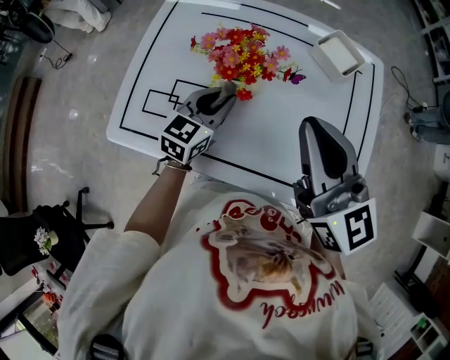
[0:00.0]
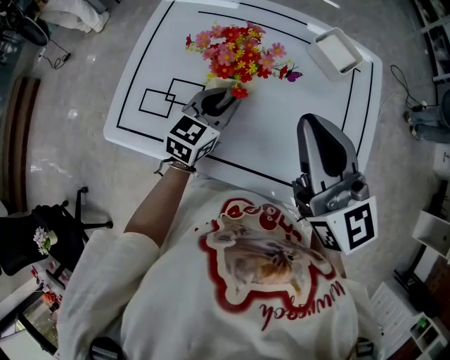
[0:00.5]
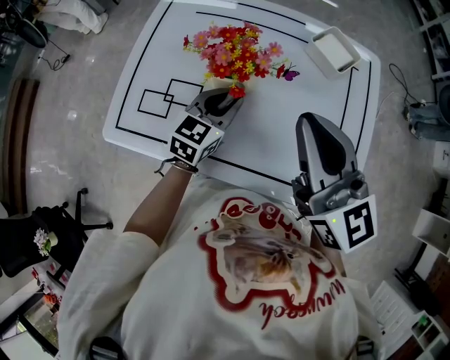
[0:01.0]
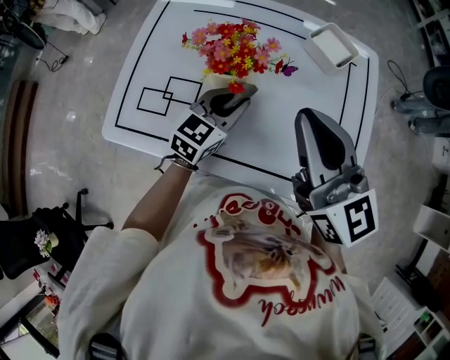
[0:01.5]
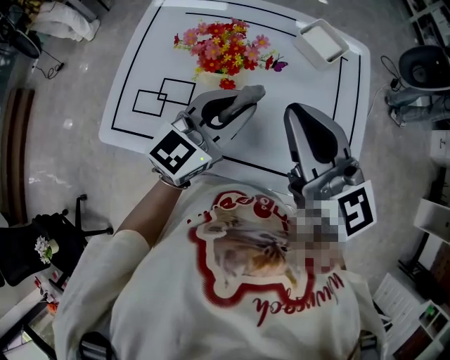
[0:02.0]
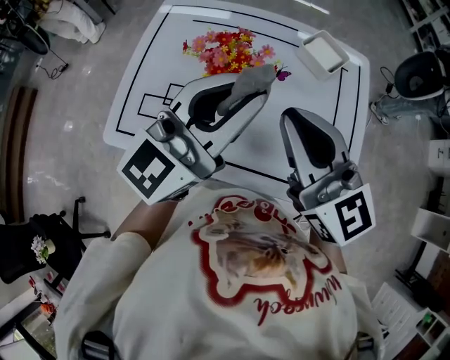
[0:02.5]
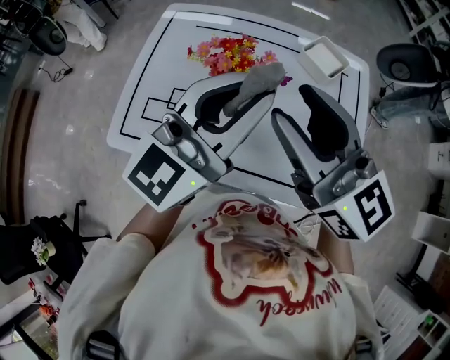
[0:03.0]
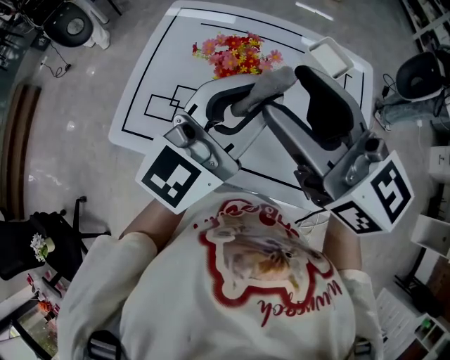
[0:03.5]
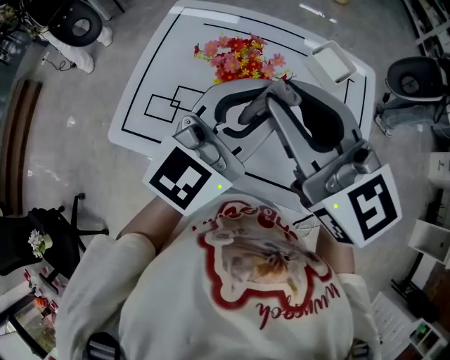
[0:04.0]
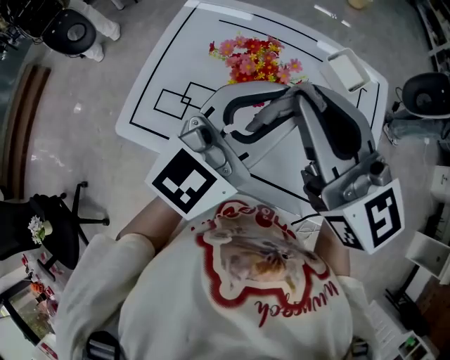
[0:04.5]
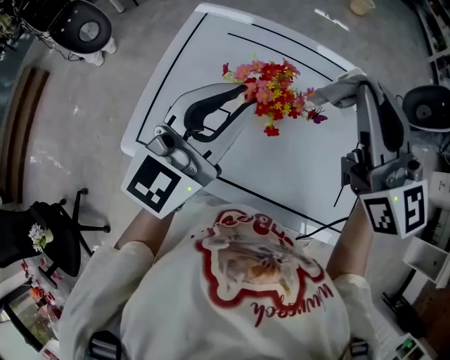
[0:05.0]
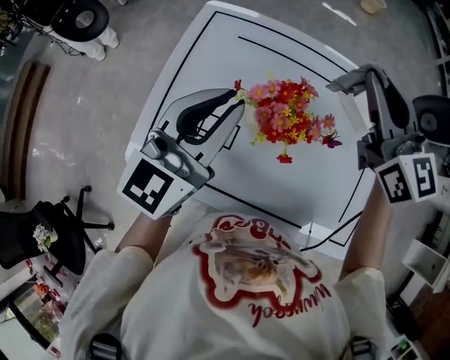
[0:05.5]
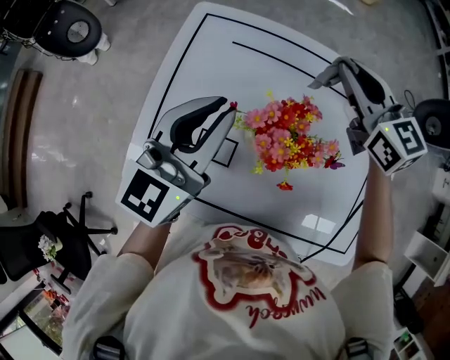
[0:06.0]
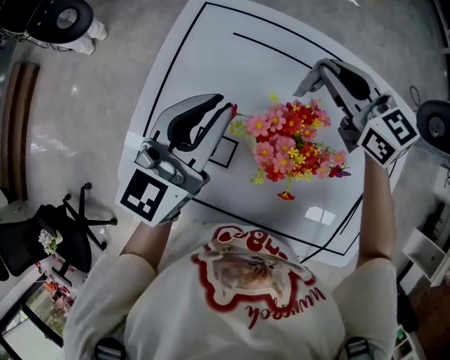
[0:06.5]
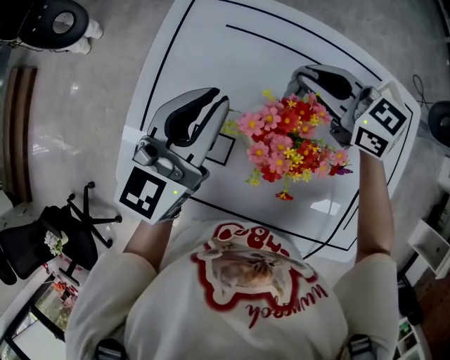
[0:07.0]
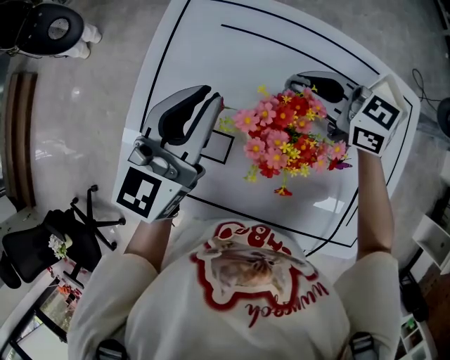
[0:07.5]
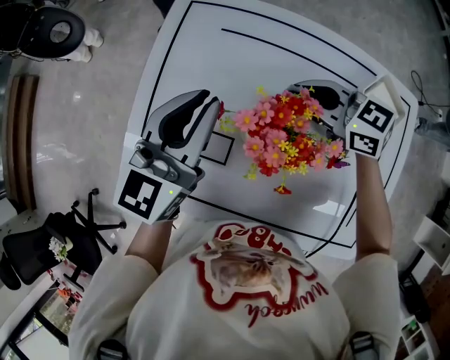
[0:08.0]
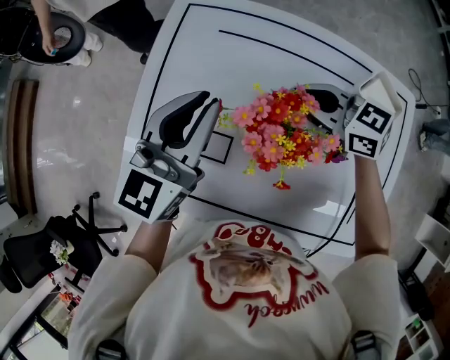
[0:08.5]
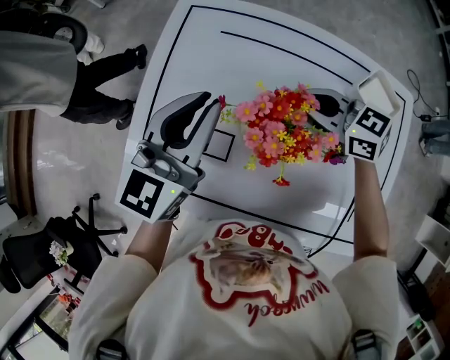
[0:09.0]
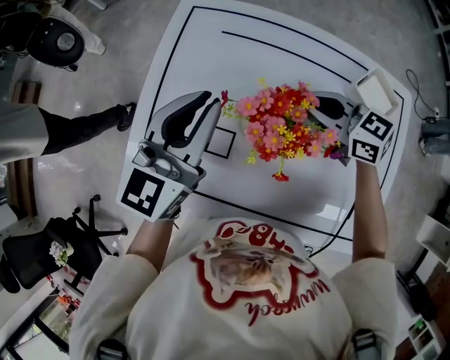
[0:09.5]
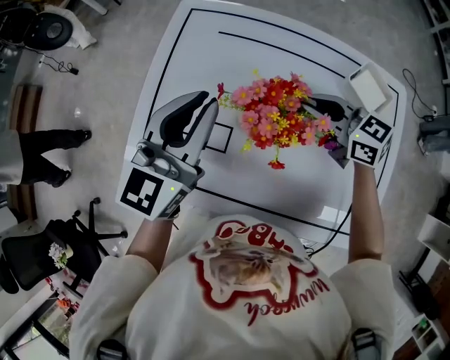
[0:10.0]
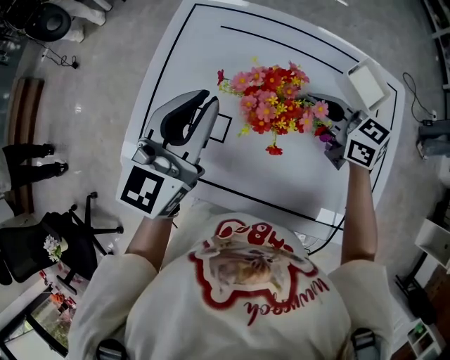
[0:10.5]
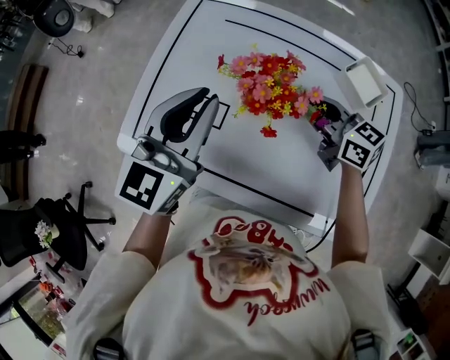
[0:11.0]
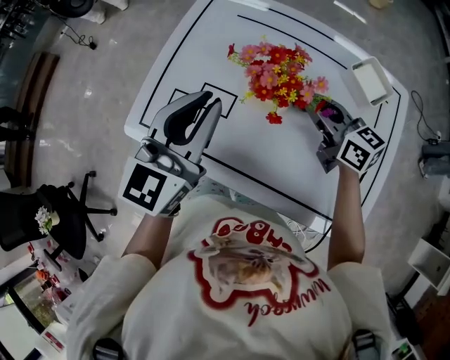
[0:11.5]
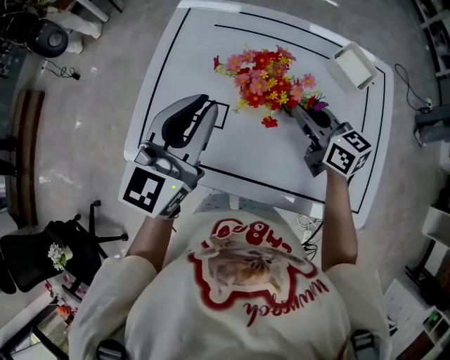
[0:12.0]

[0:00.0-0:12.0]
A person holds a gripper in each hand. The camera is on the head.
0:00.0 to 0:02.0: The left gripper goes approximately 15 cm upward, to the right and backward, and rotates some 20 degrees.
0:02.0 to 0:04.0: The left gripper shifts some 10 cm upward. The right gripper heads upward and to the left, covering about 10 cm, and opens, then closes again.
0:04.0 to 0:06.0: The left gripper travels to the left, forward and downward by roughly 25 cm, and changes its angle by approximately 20 degrees. The right gripper shifts roughly 30 cm forward and downward.
0:06.0 to 0:08.0: The right gripper travels downward and to the left by roughly 15 cm, and rotates approximately 40 degrees.
0:08.0 to 0:10.0: The right gripper is displaced backward by about 5 cm.
0:10.0 to 0:12.0: Both grippers travel together backward, about 5 cm. The right gripper changes its angle by roughly 20 degrees.

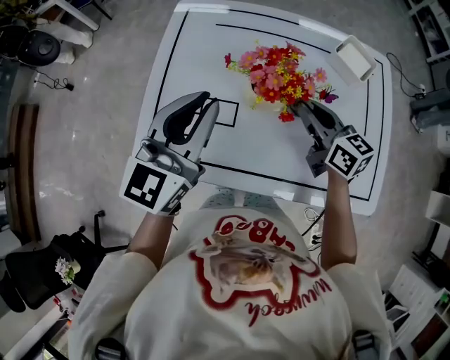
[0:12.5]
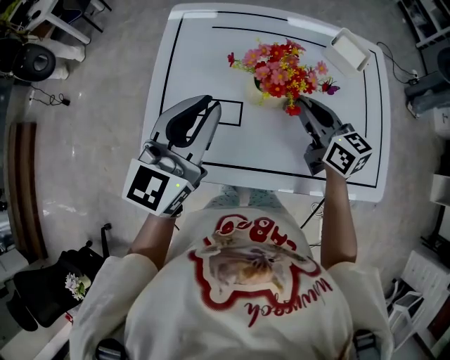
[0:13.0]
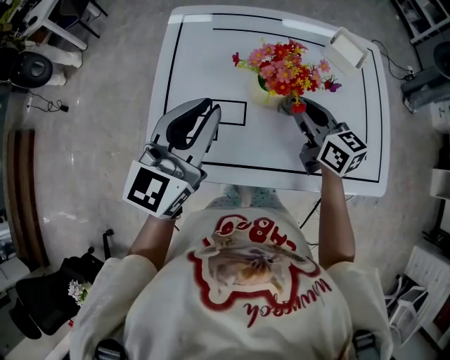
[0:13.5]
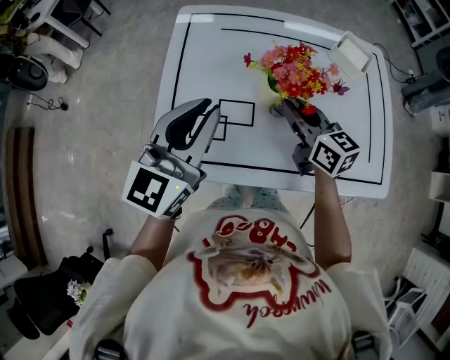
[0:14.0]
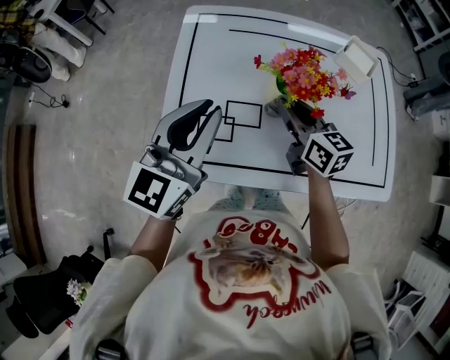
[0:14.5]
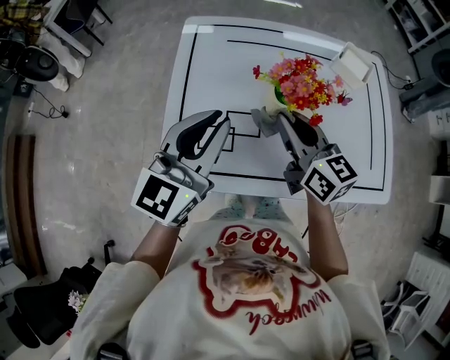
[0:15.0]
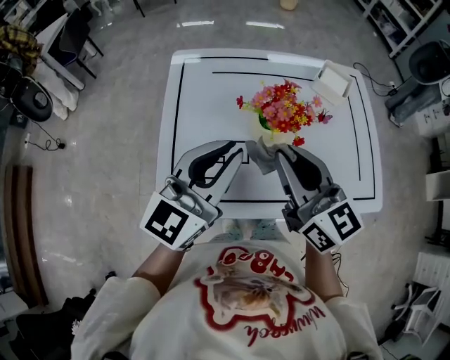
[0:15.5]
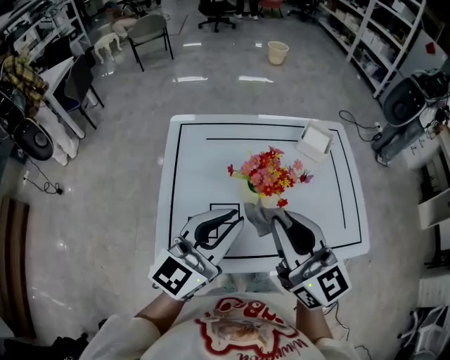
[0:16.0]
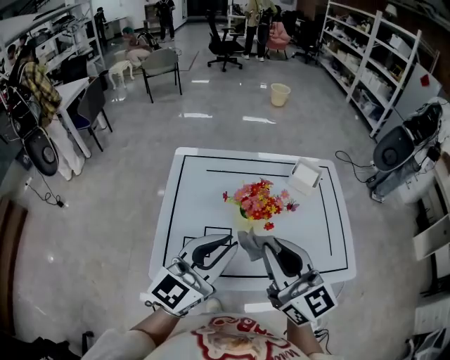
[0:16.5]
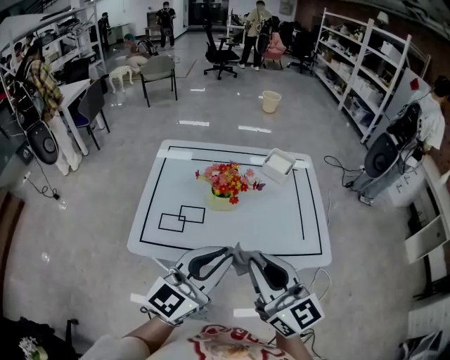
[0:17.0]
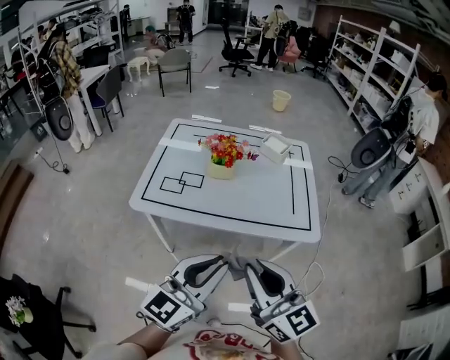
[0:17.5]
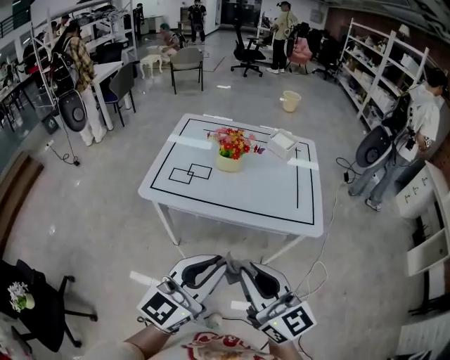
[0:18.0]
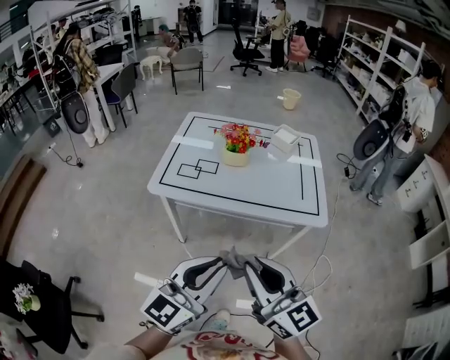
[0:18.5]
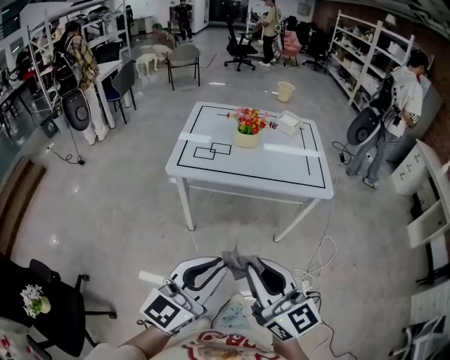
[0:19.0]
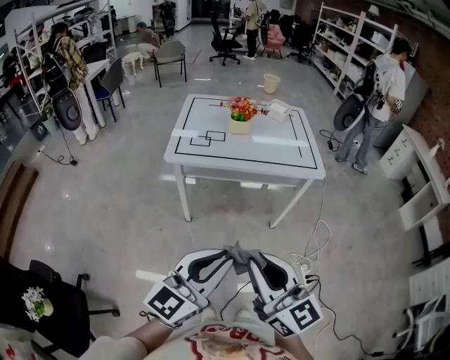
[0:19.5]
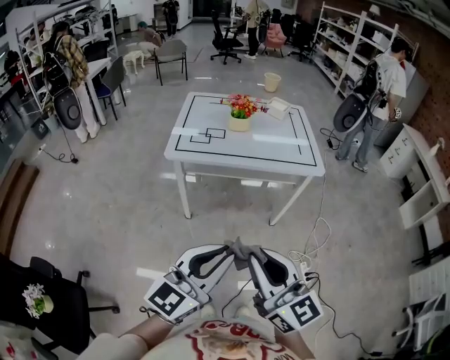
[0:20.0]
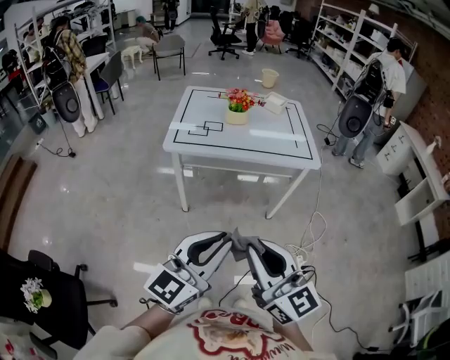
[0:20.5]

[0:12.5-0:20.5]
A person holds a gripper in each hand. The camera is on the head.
0:12.5 to 0:14.5: The left gripper shifts roughly 5 cm to the left, while the right gripper goes about 10 cm to the left.
0:14.5 to 0:16.5: The left gripper is displaced to the right and upward by some 10 cm. Meanwhile the right gripper moves upward and backward, roughly 25 cm, and rotates some 30 degrees.
0:16.5 to 0:18.5: The two grippers go approximately 35 cm backward.
0:18.5 to 0:20.5: Both grippers move backward, about 20 cm.

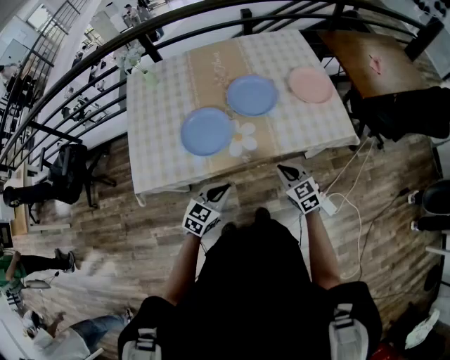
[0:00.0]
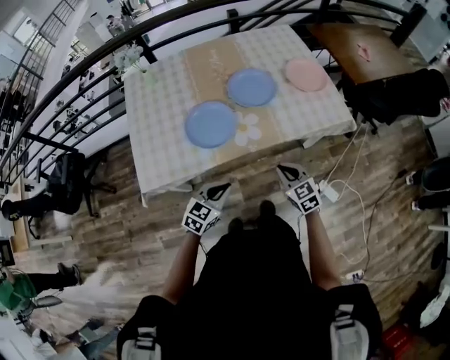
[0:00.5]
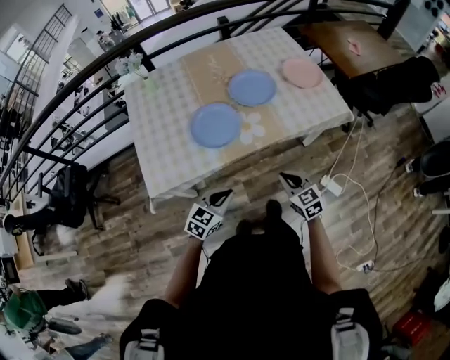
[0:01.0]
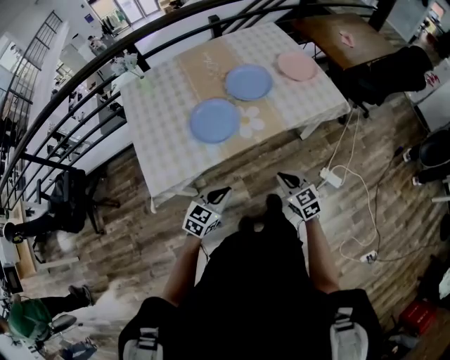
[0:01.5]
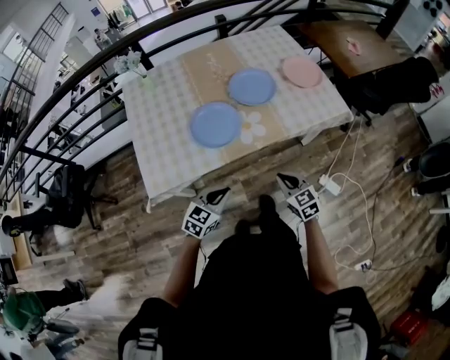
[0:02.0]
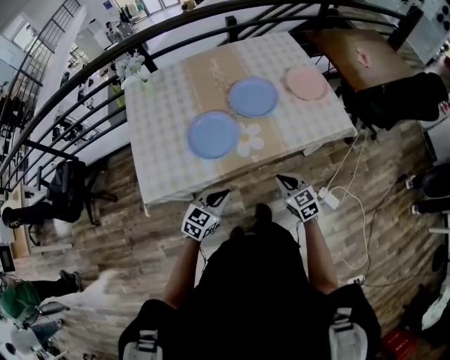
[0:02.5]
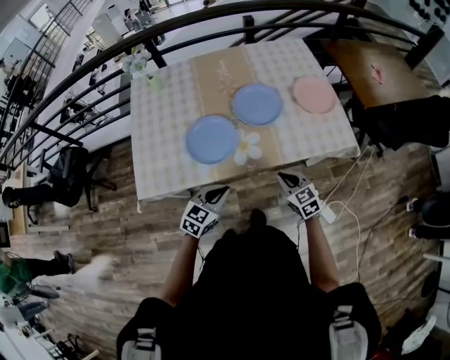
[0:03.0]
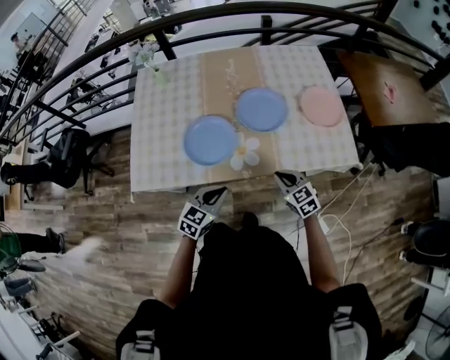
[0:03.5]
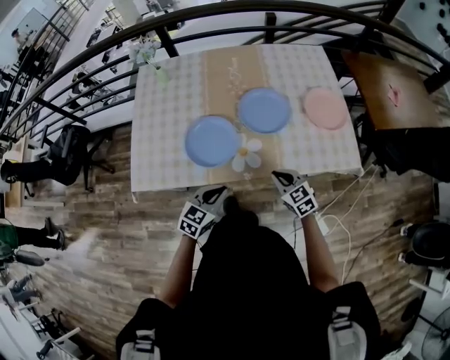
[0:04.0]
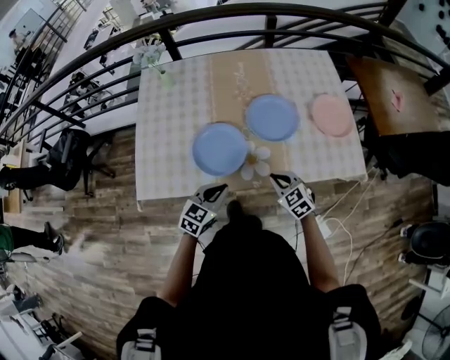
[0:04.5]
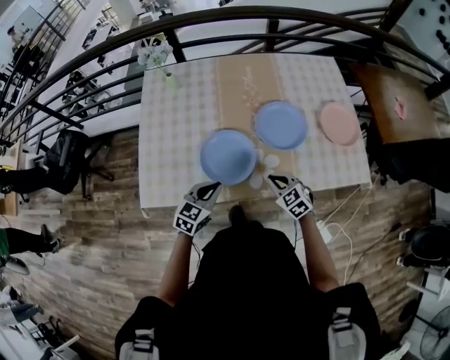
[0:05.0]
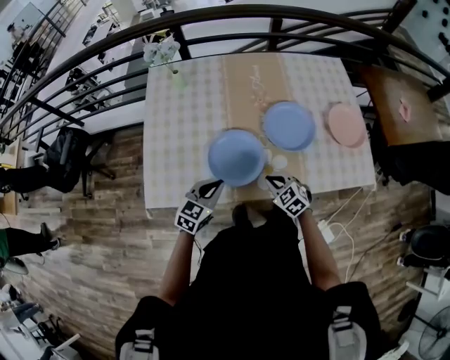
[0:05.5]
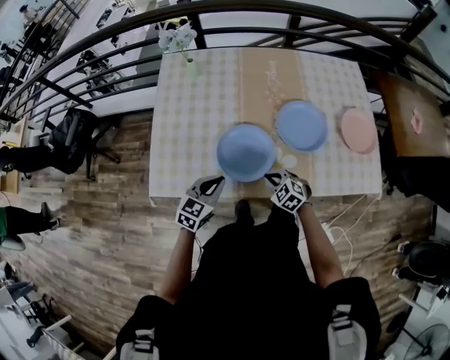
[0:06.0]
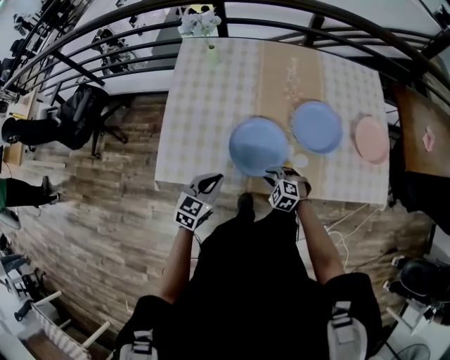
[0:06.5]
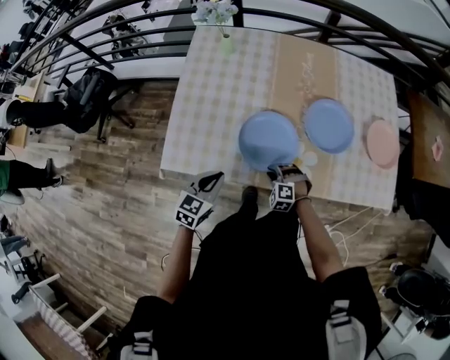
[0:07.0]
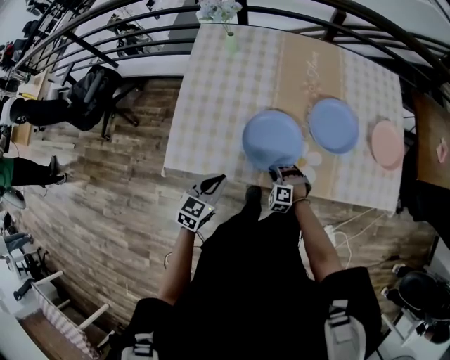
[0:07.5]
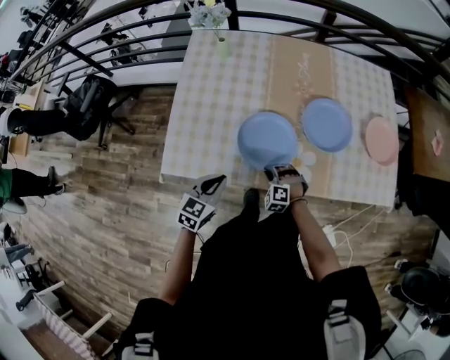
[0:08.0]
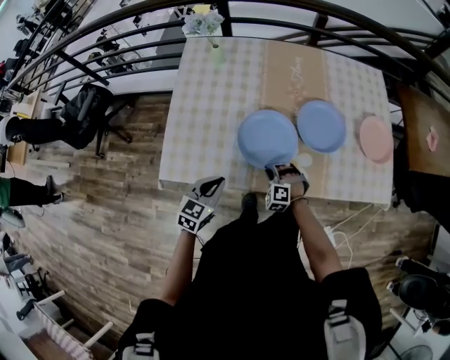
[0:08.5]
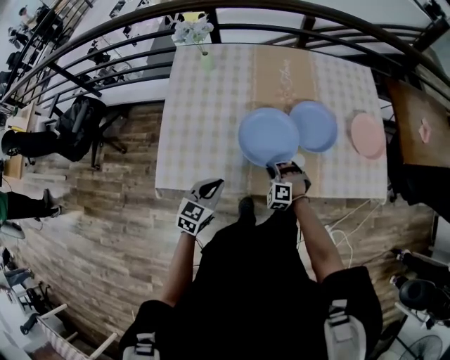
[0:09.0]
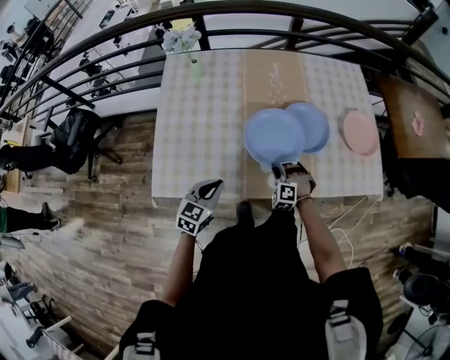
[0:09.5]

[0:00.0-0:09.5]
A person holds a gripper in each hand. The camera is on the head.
0:00.0 to 0:02.0: The left gripper moves to the left and backward, some 15 cm; the right gripper travels backward and to the left by roughly 15 cm.
0:02.0 to 0:04.0: The left gripper travels forward and to the right by roughly 15 cm; the right gripper moves forward, some 20 cm, and rotates approximately 20 degrees.
0:04.0 to 0:05.5: The right gripper moves to the left, forward and downward, some 15 cm, while the left gripper shifts about 15 cm to the left and forward.
0:05.5 to 0:07.5: The right gripper shifts some 15 cm downward and to the left, and rolls counterclockwise, seen from behind, by approximately 40 degrees, while the left gripper shifts about 10 cm to the left.
0:07.5 to 0:09.5: The right gripper goes approximately 15 cm to the right, forward and upward; the left gripper ends up approximately 5 cm from where it was.
